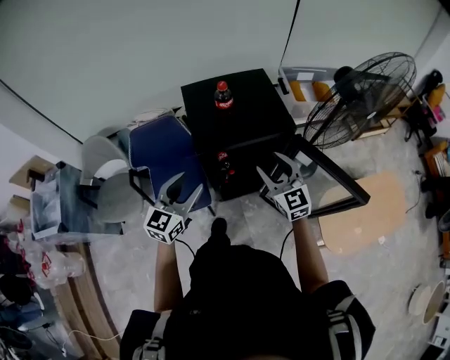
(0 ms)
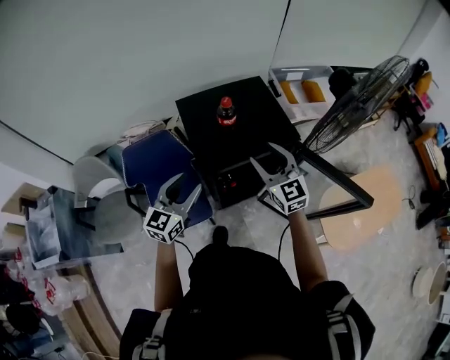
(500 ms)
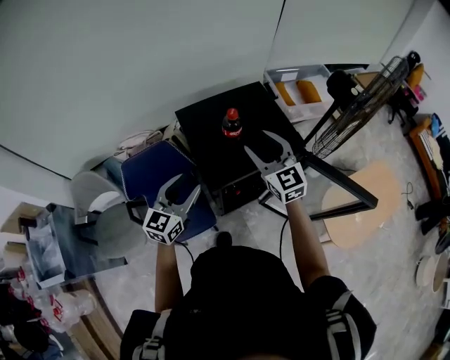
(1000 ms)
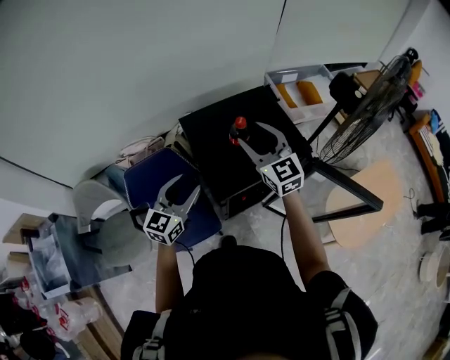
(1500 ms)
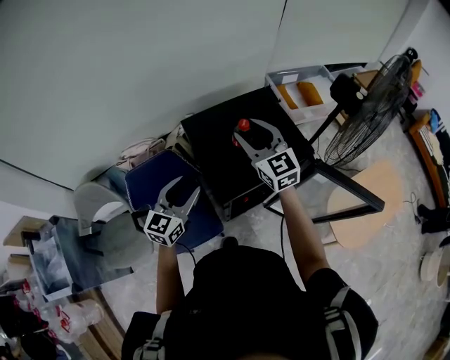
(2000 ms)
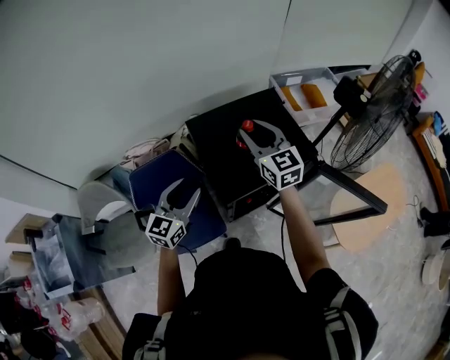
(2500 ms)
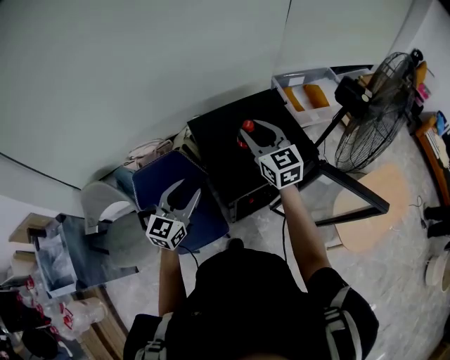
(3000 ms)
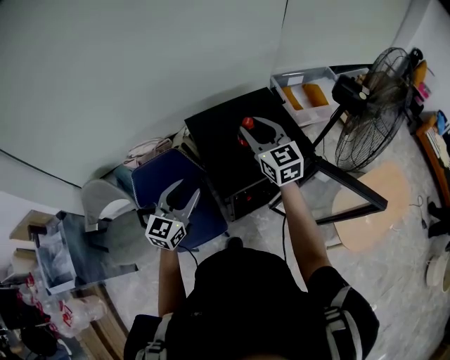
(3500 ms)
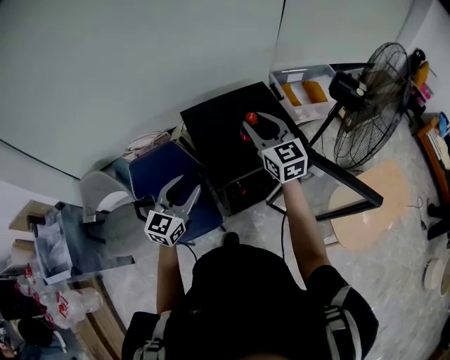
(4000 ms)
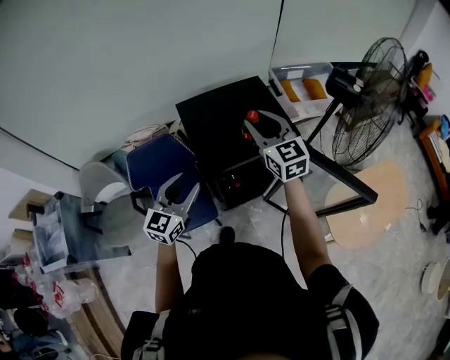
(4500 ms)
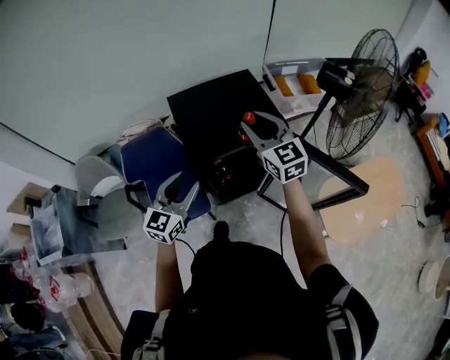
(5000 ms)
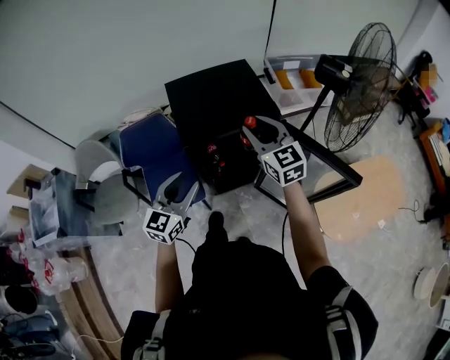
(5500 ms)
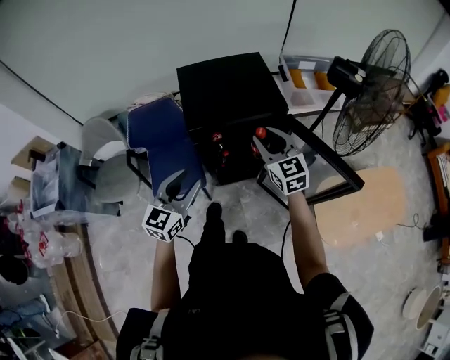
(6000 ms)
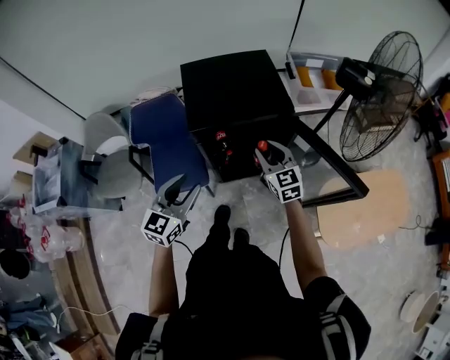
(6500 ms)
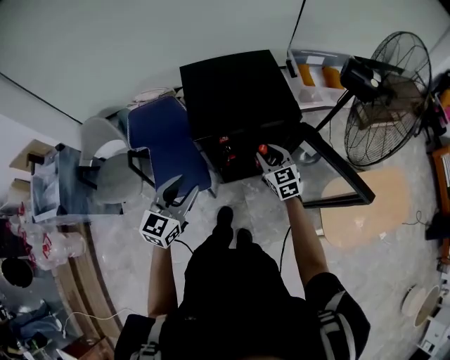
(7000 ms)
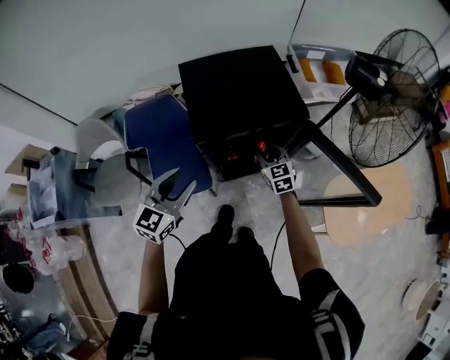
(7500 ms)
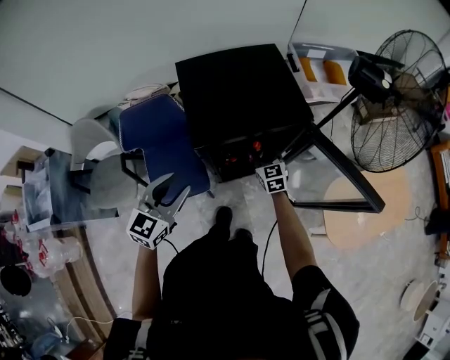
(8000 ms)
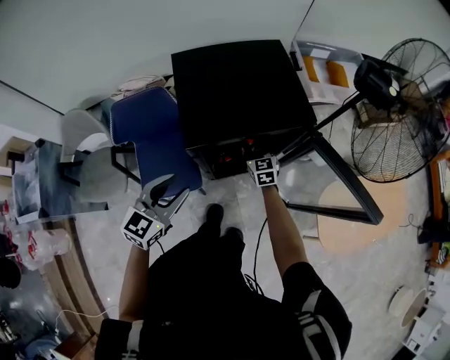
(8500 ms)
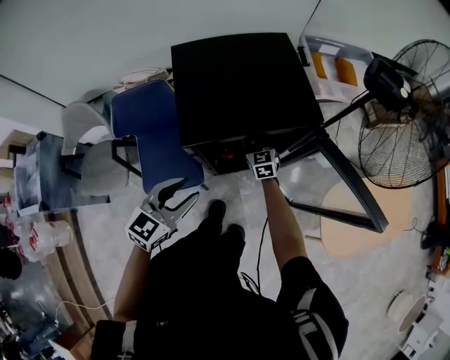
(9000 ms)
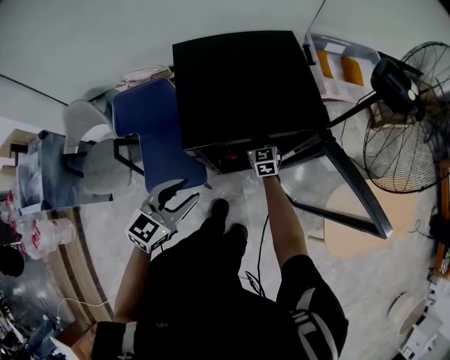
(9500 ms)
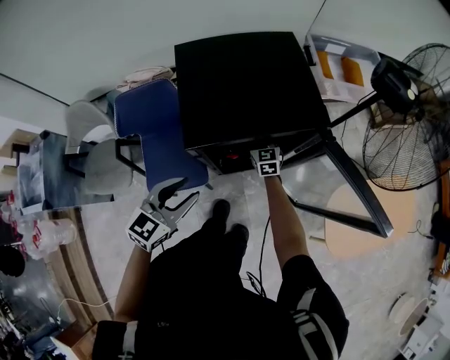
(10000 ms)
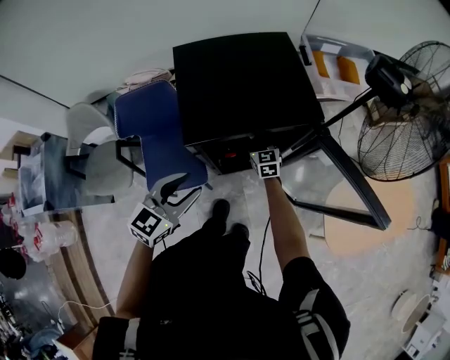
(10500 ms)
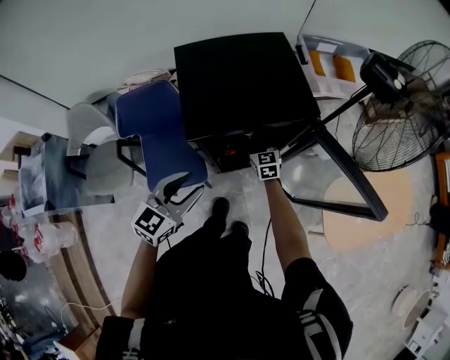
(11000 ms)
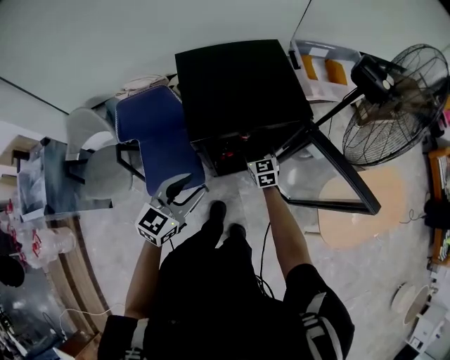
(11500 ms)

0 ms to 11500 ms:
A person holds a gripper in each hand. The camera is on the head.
0 ms to 2000 ms: The right gripper moves forward, to the left and upward, about 25 cm; the left gripper is displaced forward and to the left by about 20 cm.
2000 ms to 4000 ms: The left gripper heads backward, covering roughly 5 cm. Meanwhile the right gripper moves approximately 5 cm.
4000 ms to 6000 ms: The left gripper shifts some 20 cm backward and to the right; the right gripper goes about 20 cm backward, to the right and downward.
6000 ms to 7500 ms: The left gripper travels forward and to the left by roughly 10 cm. The right gripper is displaced downward by roughly 20 cm.
7500 ms to 9500 ms: The left gripper goes approximately 10 cm downward, while the right gripper moves downward, forward and to the left, roughly 15 cm.
9500 ms to 11500 ms: The right gripper travels backward and upward by about 10 cm, and opens.

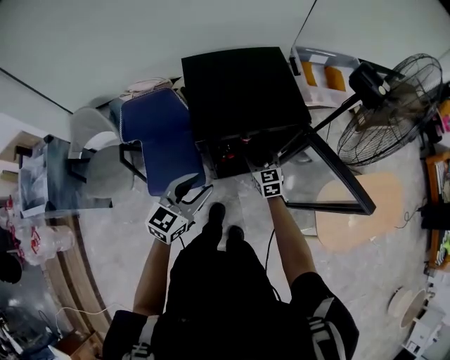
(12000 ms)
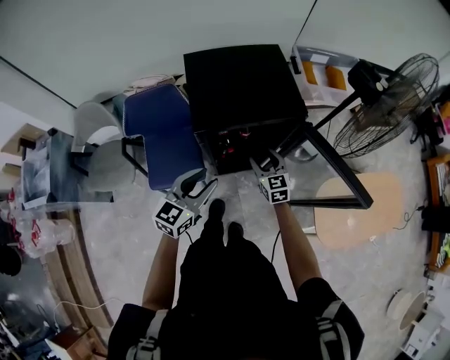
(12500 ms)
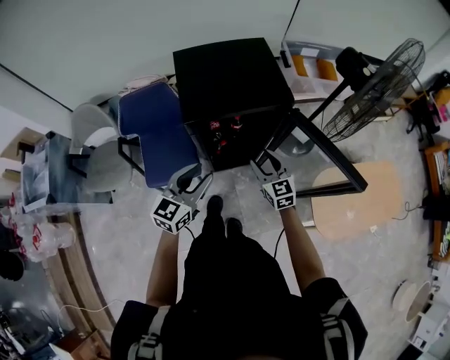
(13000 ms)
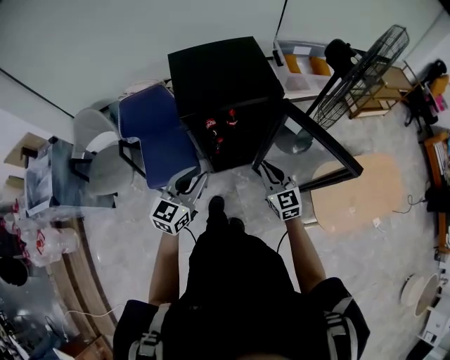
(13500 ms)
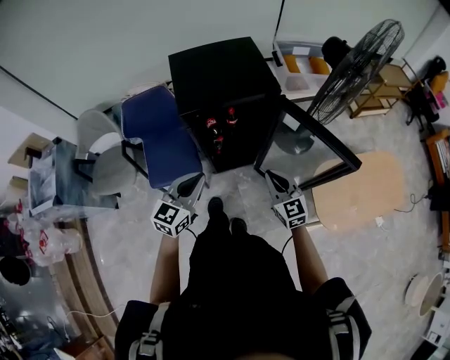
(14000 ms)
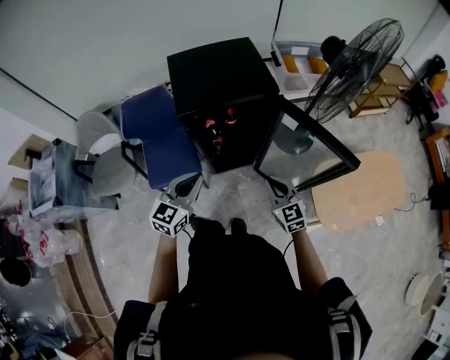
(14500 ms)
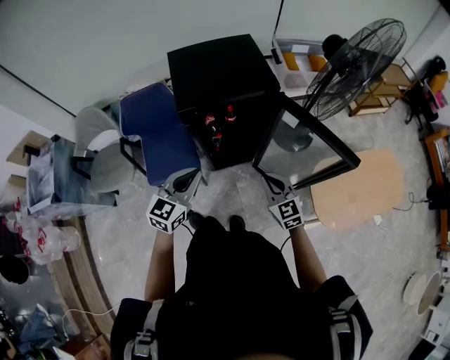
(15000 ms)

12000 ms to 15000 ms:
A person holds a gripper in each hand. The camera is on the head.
12000 ms to 13500 ms: The right gripper goes approximately 20 cm backward, upward and to the right, and closes, while the left gripper is displaced backward by some 5 cm.
13500 ms to 15000 ms: The right gripper shifts about 5 cm backward; the left gripper closes up.

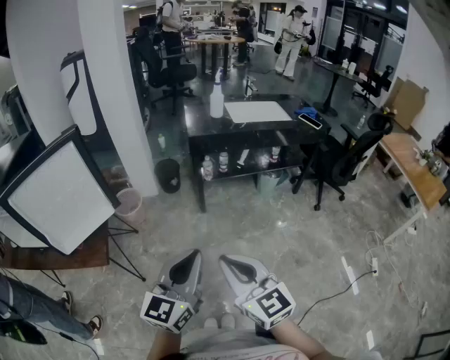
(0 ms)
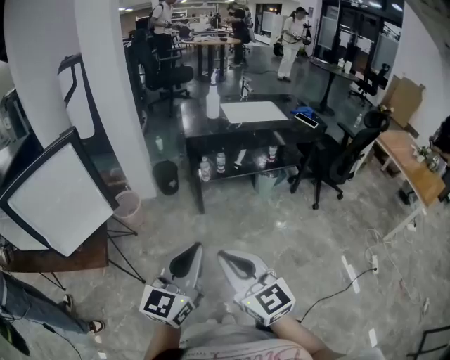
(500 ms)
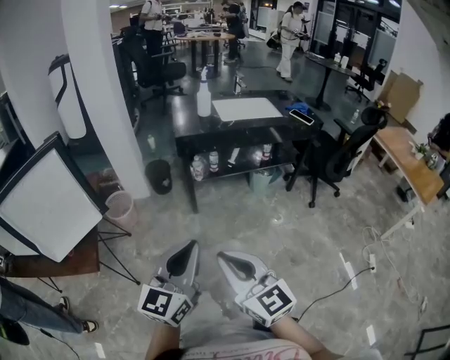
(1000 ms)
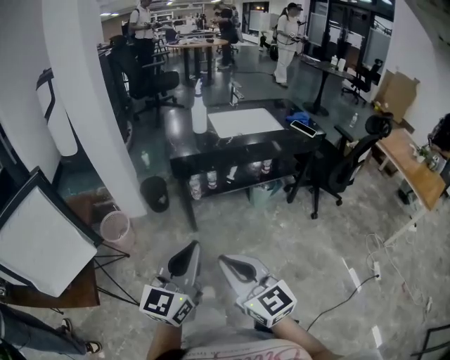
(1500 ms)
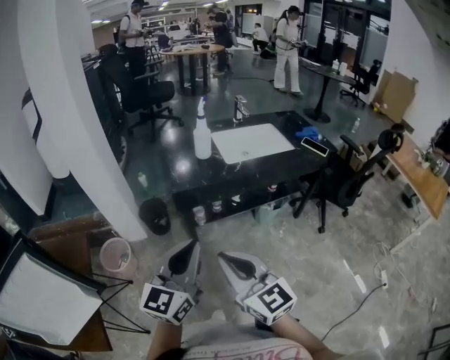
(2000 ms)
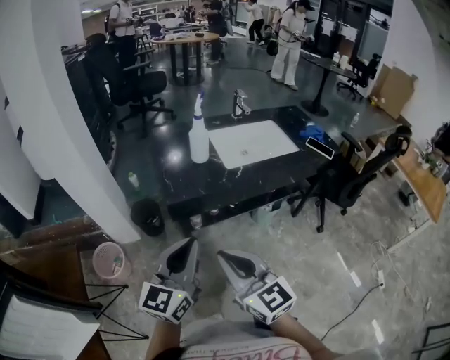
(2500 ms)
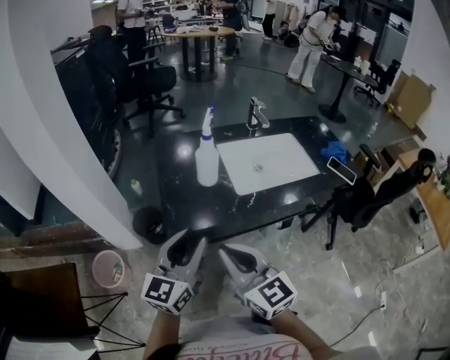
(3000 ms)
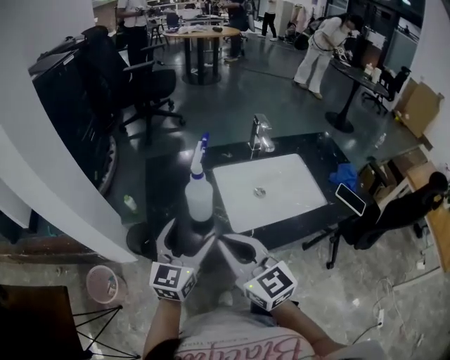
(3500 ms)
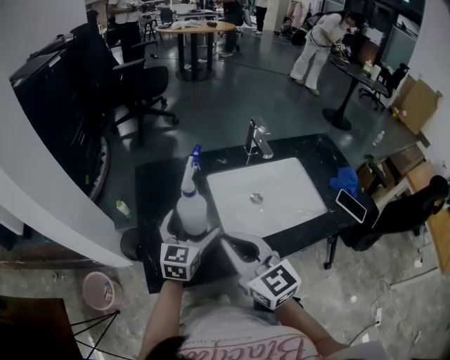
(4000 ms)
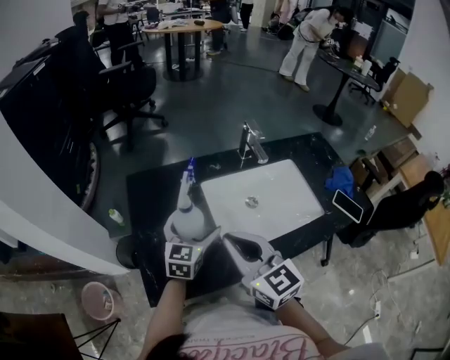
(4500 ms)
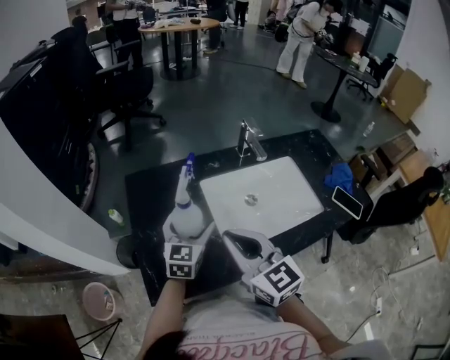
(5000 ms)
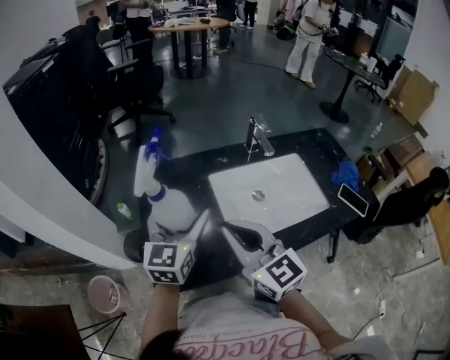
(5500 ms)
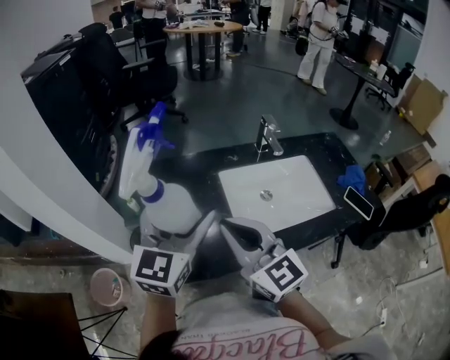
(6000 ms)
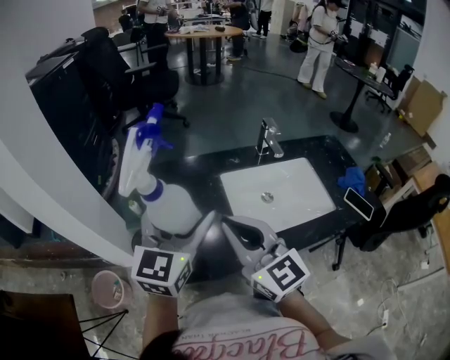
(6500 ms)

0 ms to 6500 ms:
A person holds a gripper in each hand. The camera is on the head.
0 ms to 2000 ms: Both grippers travel together forward, about 30 cm.
2000 ms to 4500 ms: Both grippers are carried forward, about 50 cm. The left gripper changes its angle by roughly 20 degrees, and opens its fingers.
4500 ms to 6500 ms: The left gripper shifts some 20 cm upward and backward. Meanwhile the right gripper shifts some 5 cm upward.

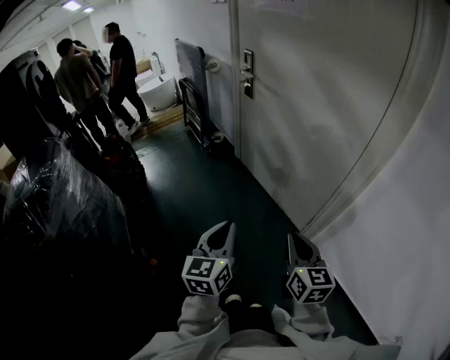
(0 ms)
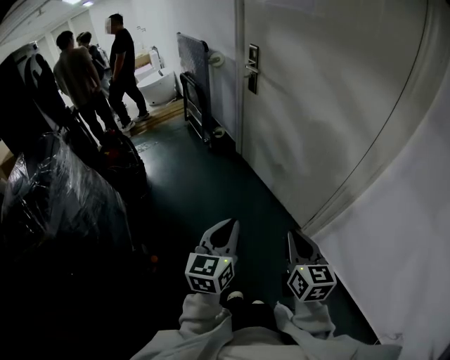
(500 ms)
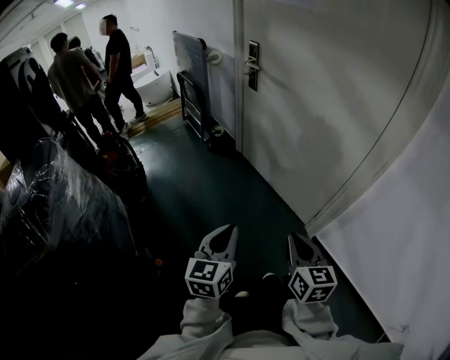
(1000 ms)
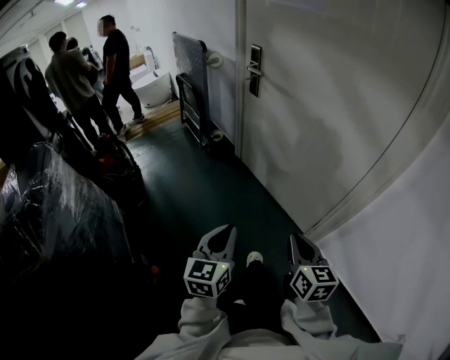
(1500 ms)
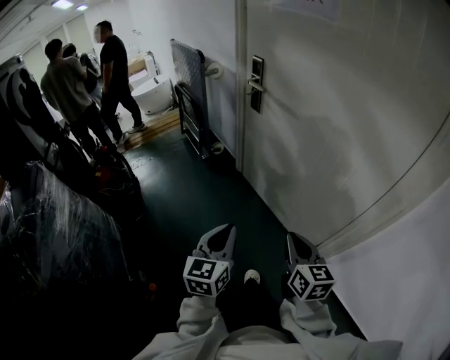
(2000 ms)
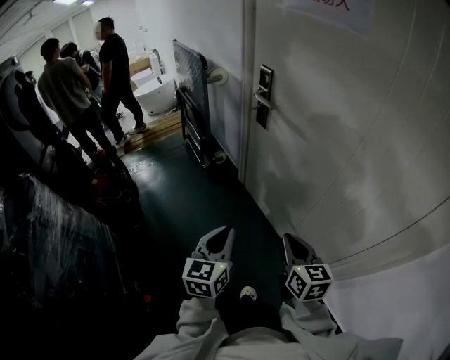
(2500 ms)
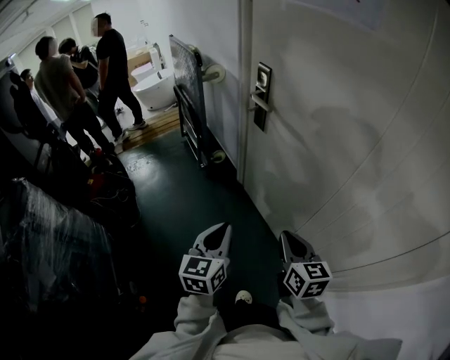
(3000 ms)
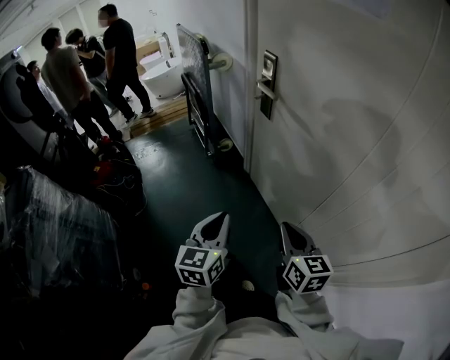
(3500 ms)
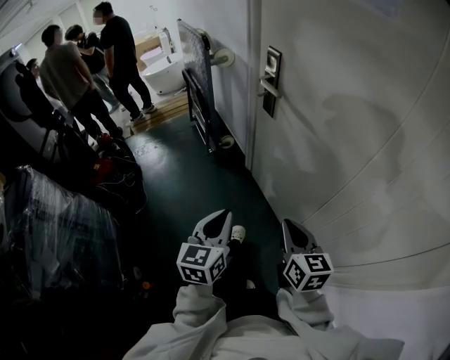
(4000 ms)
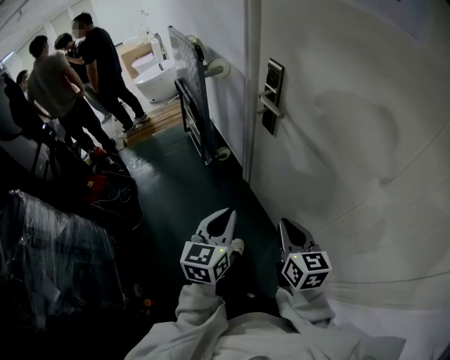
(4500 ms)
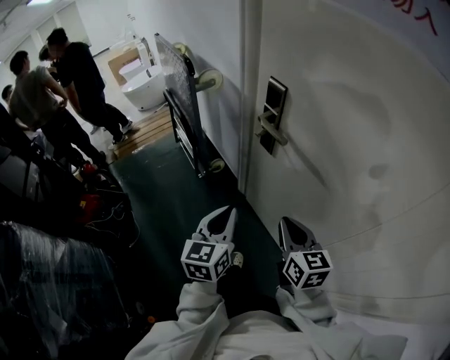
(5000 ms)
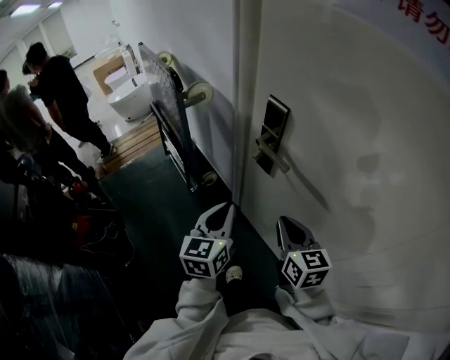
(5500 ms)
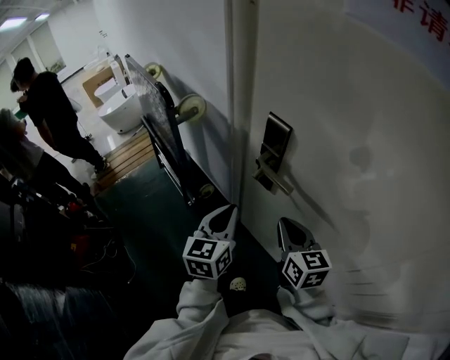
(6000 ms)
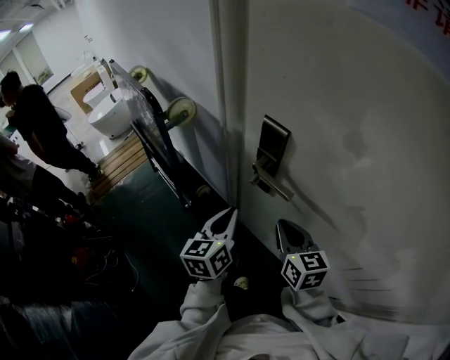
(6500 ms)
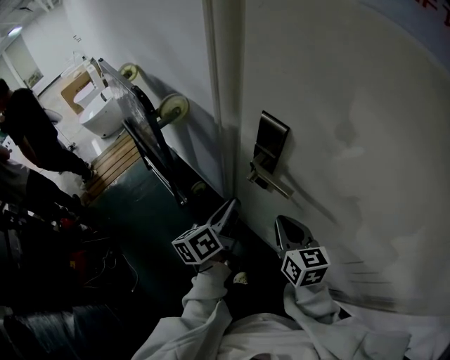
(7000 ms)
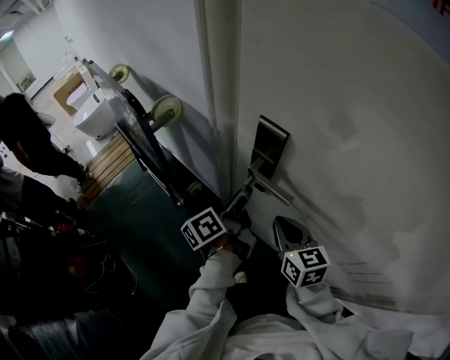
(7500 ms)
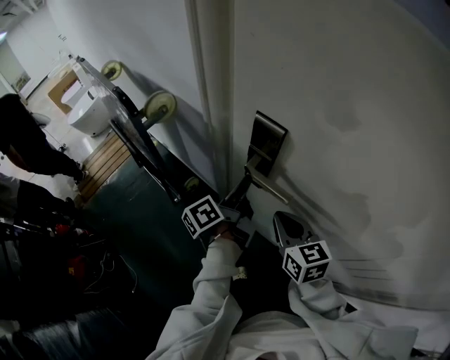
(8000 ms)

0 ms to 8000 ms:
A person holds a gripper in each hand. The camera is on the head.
0 ms to 2000 ms: The two grippers go approximately 20 cm forward.
2000 ms to 4000 ms: The two grippers go some 20 cm forward.
4000 ms to 6000 ms: The grippers both shift forward by roughly 35 cm.
6000 ms to 8000 ms: The left gripper heads forward, covering roughly 15 cm, rotates around the line of its fingers by approximately 60 degrees, counterclockwise from behind, and opens up.
